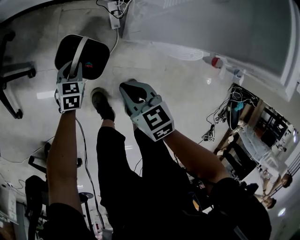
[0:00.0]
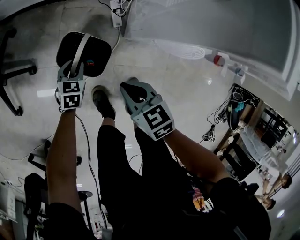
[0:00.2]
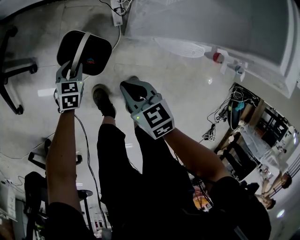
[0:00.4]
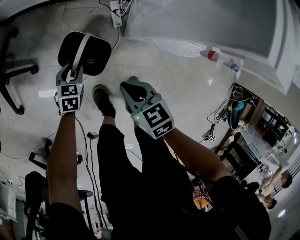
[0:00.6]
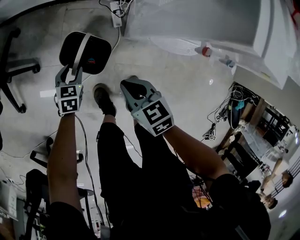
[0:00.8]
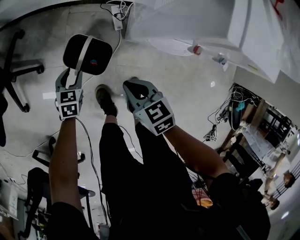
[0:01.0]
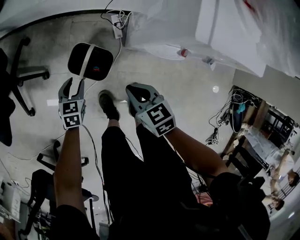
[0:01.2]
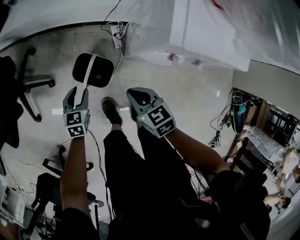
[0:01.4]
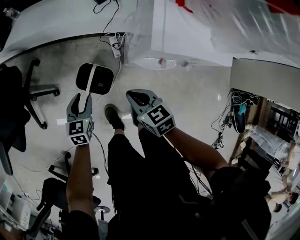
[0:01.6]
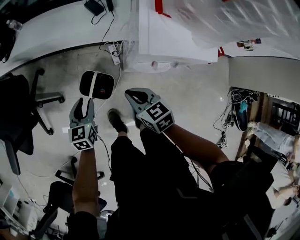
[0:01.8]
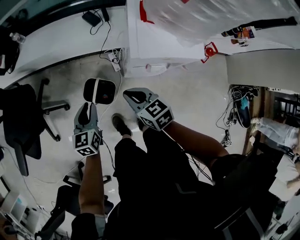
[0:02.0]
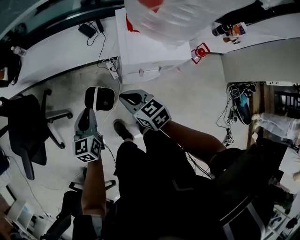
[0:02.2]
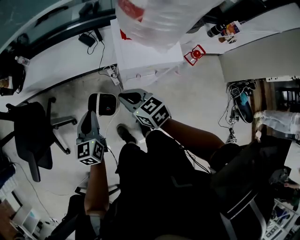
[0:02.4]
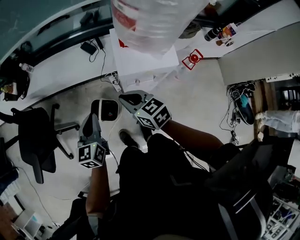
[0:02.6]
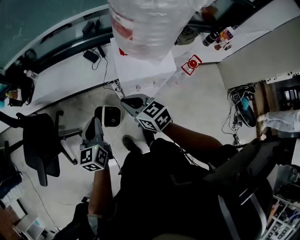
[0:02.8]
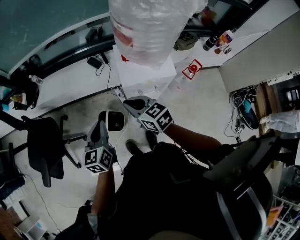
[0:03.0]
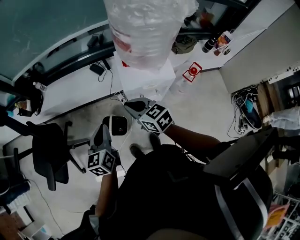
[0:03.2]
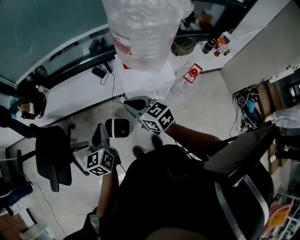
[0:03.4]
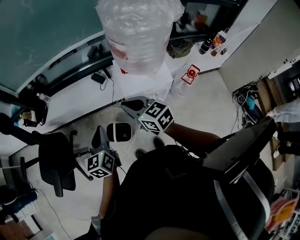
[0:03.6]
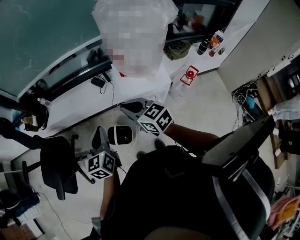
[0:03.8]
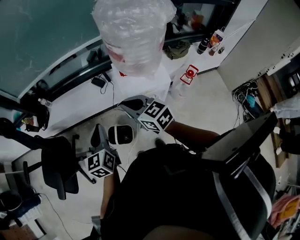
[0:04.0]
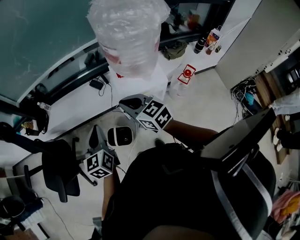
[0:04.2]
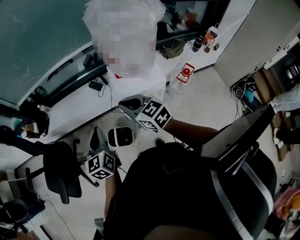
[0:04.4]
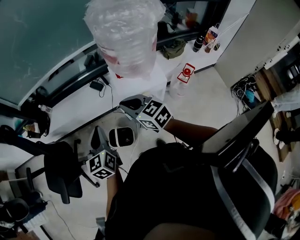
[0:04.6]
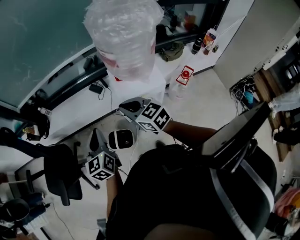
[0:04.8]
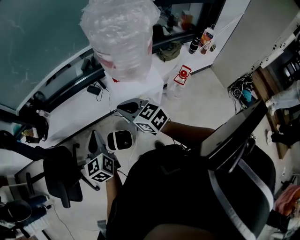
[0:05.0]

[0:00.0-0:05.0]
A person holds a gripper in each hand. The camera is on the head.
0:00.0 to 0:01.6: The two grippers go roughly 25 cm upward. The left gripper opens up.
0:01.6 to 0:03.4: The two grippers go about 35 cm upward. The right gripper swivels roughly 20 degrees; the left gripper turns by about 20 degrees, and closes its fingers.
0:03.4 to 0:05.0: The left gripper moves upward, about 5 cm.

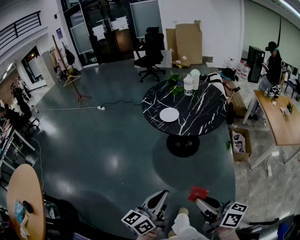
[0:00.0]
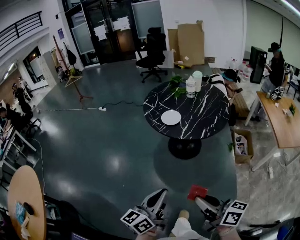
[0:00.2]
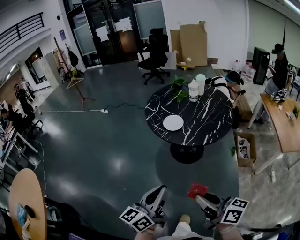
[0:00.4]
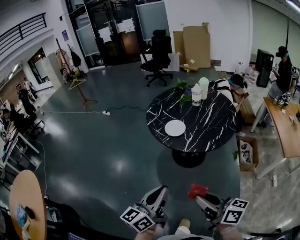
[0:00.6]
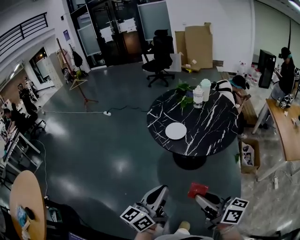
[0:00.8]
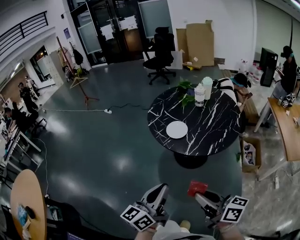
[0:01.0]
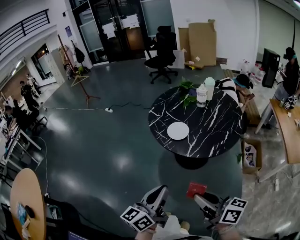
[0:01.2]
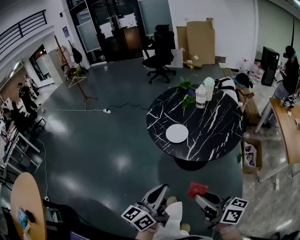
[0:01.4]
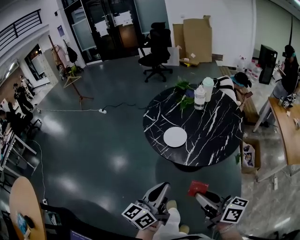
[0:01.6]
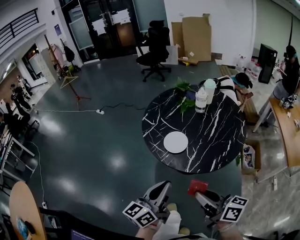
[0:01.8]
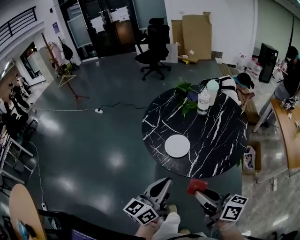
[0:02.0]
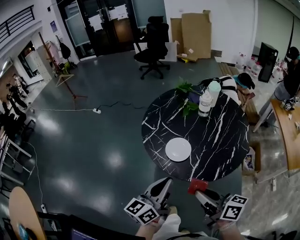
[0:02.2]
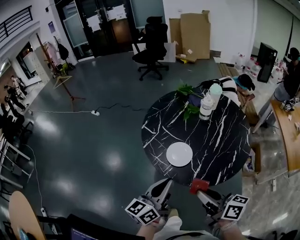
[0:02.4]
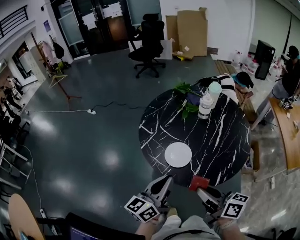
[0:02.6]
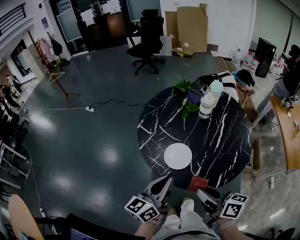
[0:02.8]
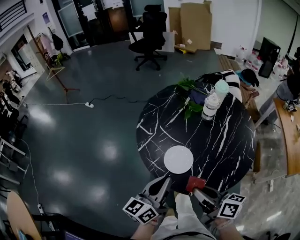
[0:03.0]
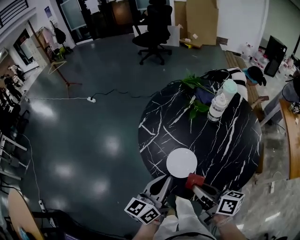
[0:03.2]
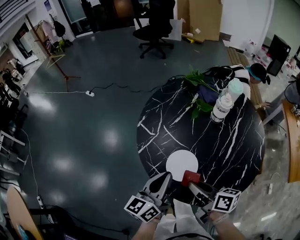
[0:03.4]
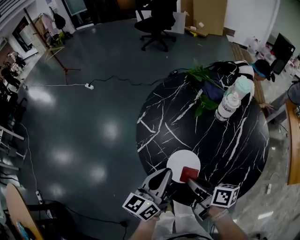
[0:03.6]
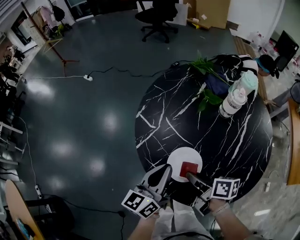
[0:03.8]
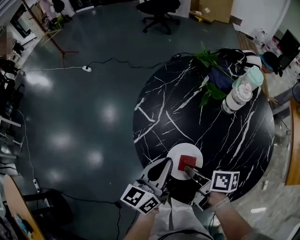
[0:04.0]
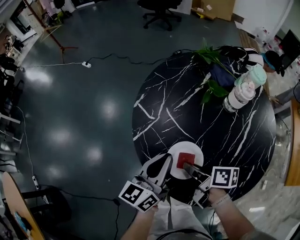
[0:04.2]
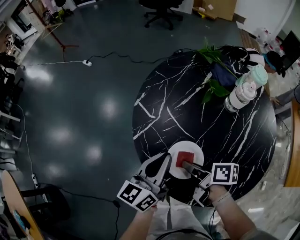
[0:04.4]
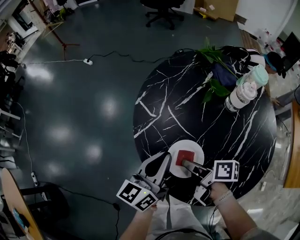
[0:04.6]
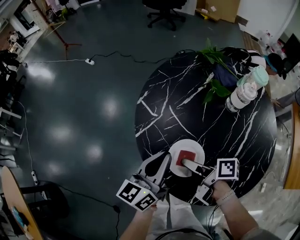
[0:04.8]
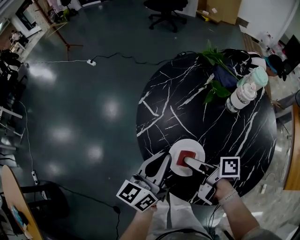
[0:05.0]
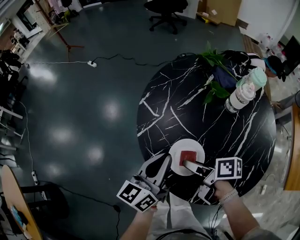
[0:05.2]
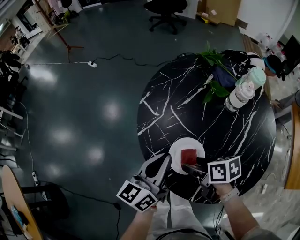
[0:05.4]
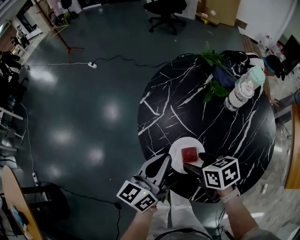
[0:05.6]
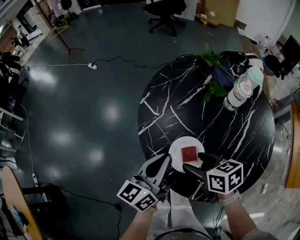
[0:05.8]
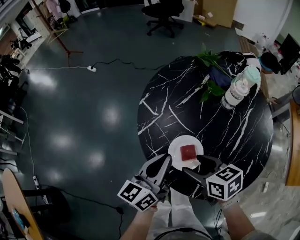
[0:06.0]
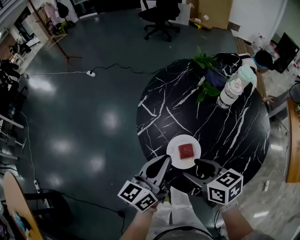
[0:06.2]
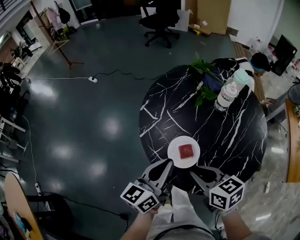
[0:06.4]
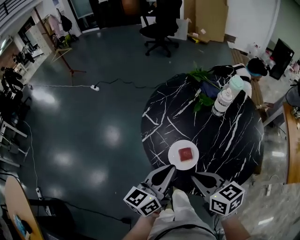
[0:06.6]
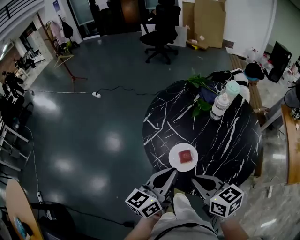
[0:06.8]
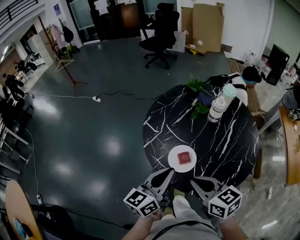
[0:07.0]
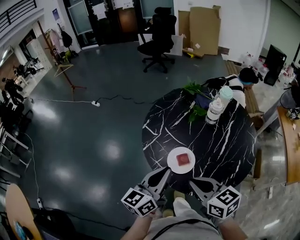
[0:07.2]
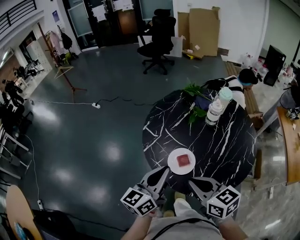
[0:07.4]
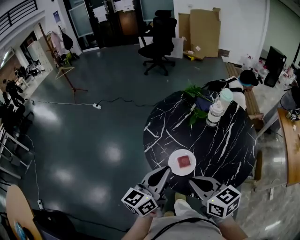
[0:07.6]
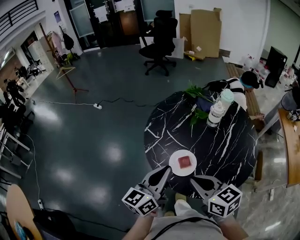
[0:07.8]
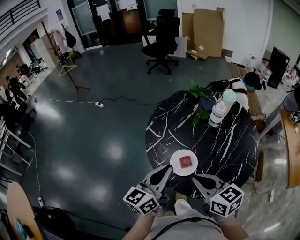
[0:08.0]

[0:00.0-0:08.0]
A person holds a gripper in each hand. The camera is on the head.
0:00.0 to 0:01.6: The grippers both shift forward by about 25 cm.
0:01.6 to 0:03.2: Both grippers travel together forward, roughly 30 cm.
0:03.2 to 0:04.8: The right gripper travels downward and forward by about 15 cm, changes its angle by roughly 40 degrees, and opens, while the left gripper heads forward and downward, covering roughly 10 cm.
0:04.8 to 0:06.4: The left gripper travels backward and upward by about 10 cm; the right gripper is displaced upward and backward by roughly 15 cm, rolls counterclockwise, seen from behind, by some 60 degrees, and closes its fingers.
0:06.4 to 0:08.0: The grippers both shift upward by some 10 cm.

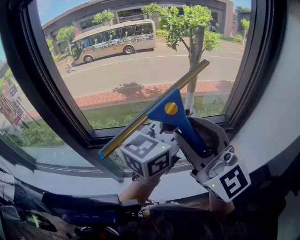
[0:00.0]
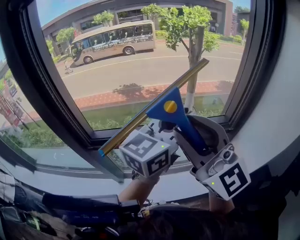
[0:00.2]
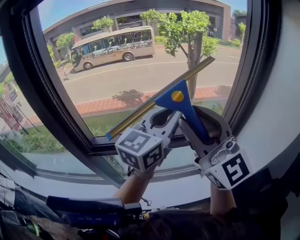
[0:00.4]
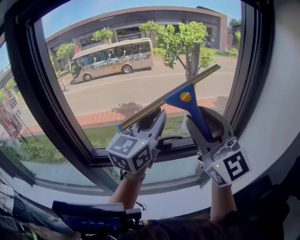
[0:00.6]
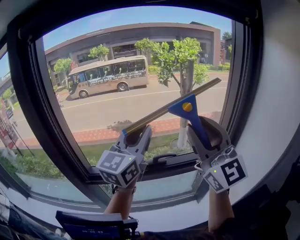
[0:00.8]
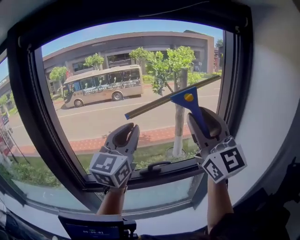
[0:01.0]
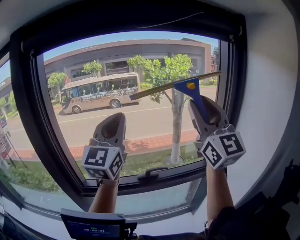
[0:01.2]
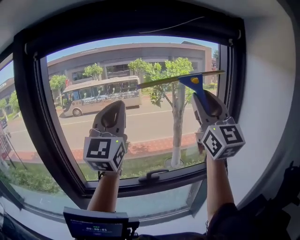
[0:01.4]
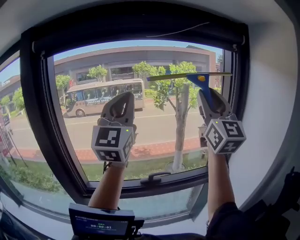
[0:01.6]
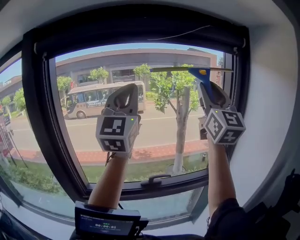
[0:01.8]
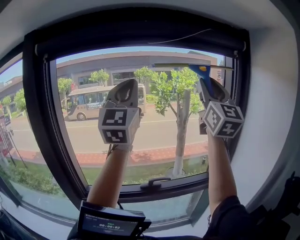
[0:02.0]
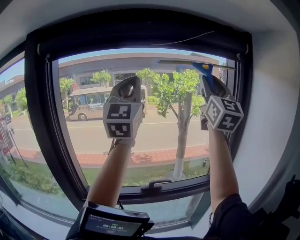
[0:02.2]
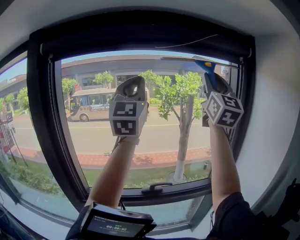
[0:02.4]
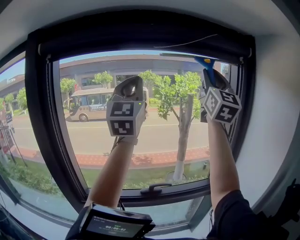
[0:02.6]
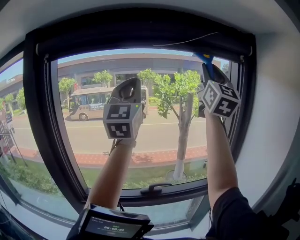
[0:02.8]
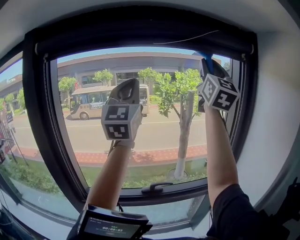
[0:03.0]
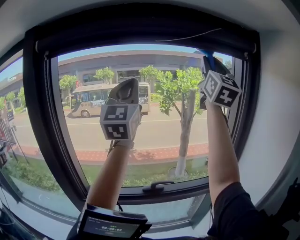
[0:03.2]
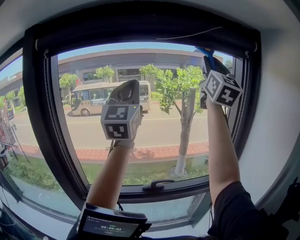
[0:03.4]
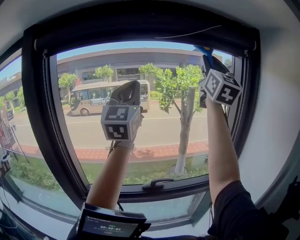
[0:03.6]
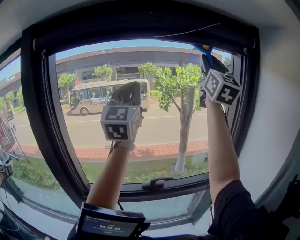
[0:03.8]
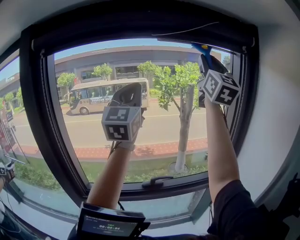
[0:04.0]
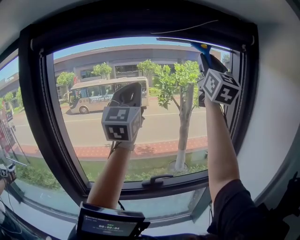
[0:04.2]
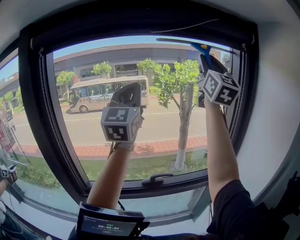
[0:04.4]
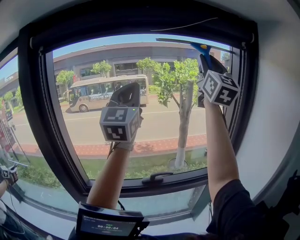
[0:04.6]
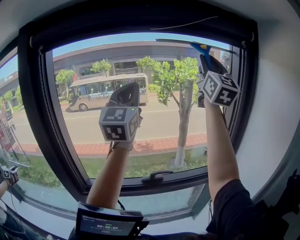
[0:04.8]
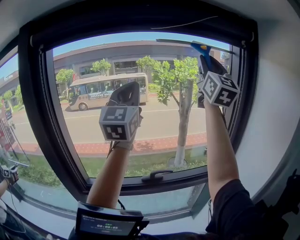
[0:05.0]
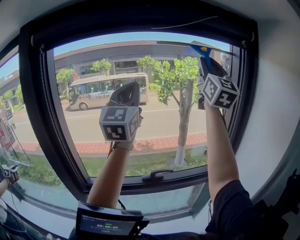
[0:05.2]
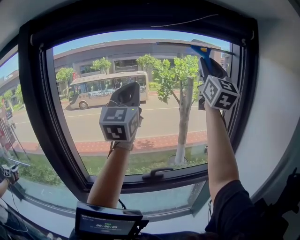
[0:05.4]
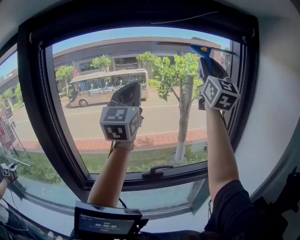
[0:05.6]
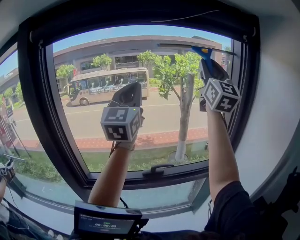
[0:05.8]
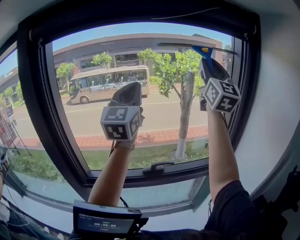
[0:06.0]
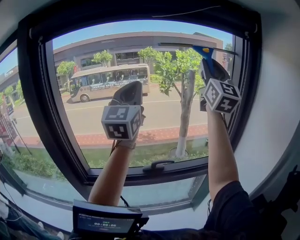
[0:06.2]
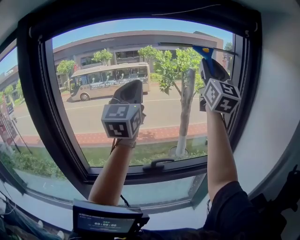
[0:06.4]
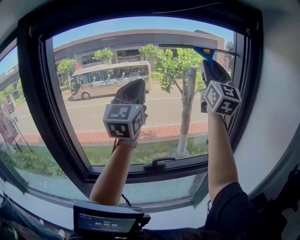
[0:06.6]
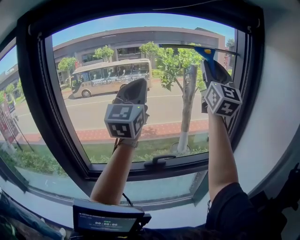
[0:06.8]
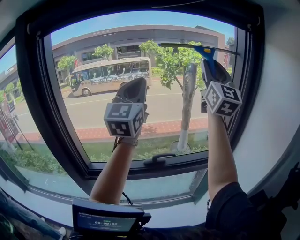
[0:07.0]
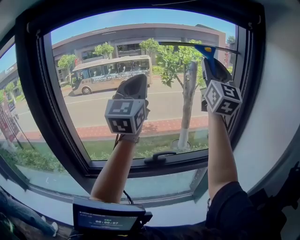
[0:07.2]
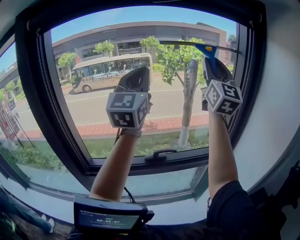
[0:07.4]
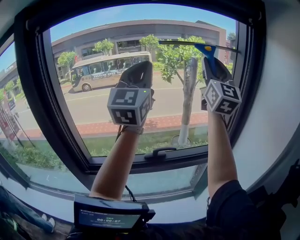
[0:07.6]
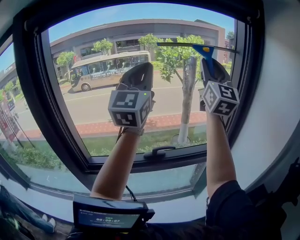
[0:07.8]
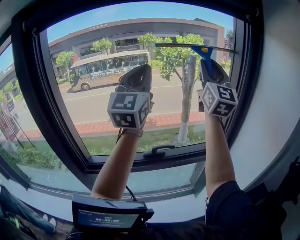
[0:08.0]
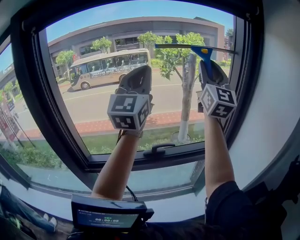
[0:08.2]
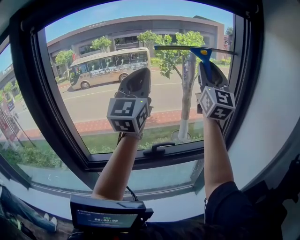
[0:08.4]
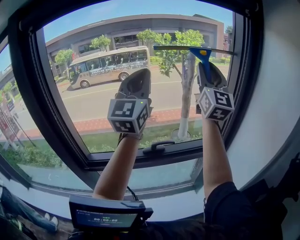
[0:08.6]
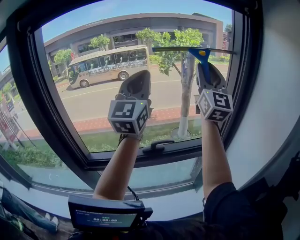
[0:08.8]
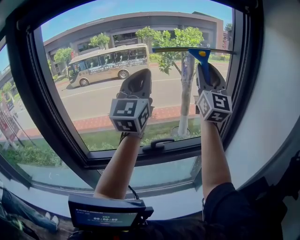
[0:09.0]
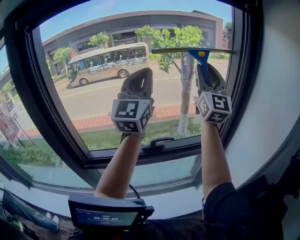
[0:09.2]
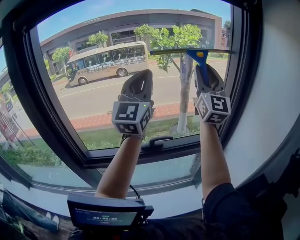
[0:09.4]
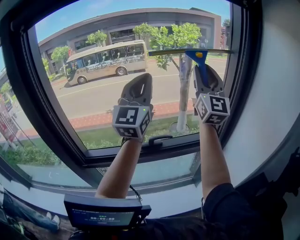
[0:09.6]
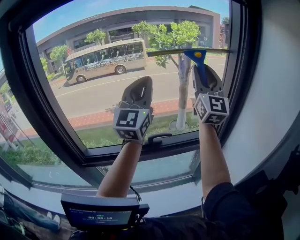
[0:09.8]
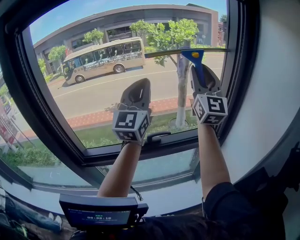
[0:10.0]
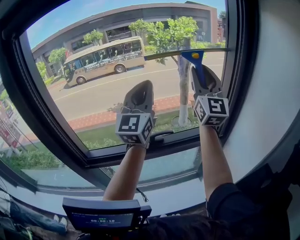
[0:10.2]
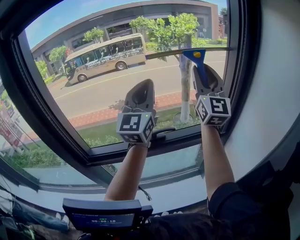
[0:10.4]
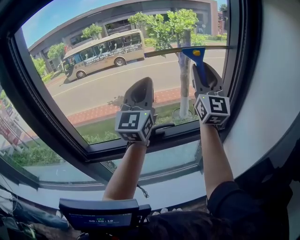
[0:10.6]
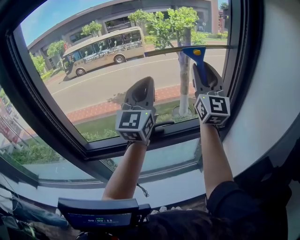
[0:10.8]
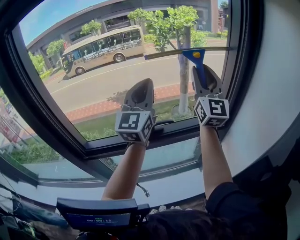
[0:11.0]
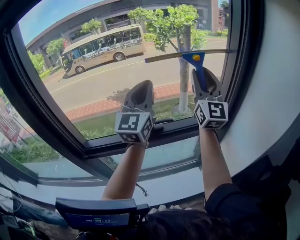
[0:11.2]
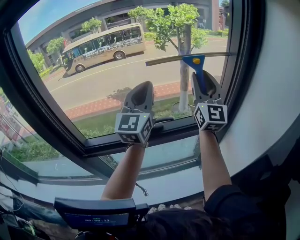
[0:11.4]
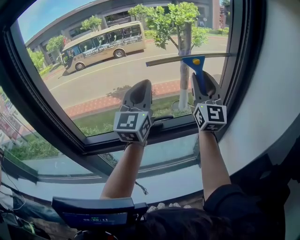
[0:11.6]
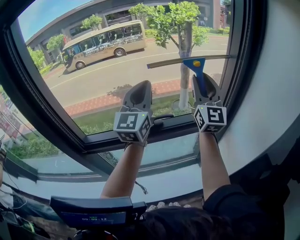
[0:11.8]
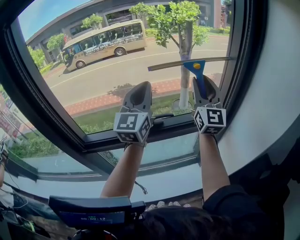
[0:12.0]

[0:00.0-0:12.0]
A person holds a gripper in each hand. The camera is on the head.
0:00.0 to 0:01.6: The right gripper heads upward, to the right and forward, covering some 30 cm, and swivels approximately 30 degrees. Meanwhile the left gripper travels upward and to the left by about 25 cm, and turns by some 50 degrees.
0:01.6 to 0:03.0: The right gripper moves upward and forward, roughly 15 cm. The left gripper is displaced forward and upward by some 10 cm.
0:03.0 to 0:04.4: The left gripper changes place by some 5 cm.
0:04.4 to 0:06.0: The right gripper shifts roughly 5 cm downward.
0:06.0 to 0:07.6: The right gripper heads downward, covering roughly 5 cm.
0:07.6 to 0:09.0: Both grippers travel together downward, some 5 cm.
0:09.0 to 0:10.4: The two grippers go approximately 5 cm downward.
0:10.4 to 0:12.0: The grippers both shift downward by roughly 10 cm.
